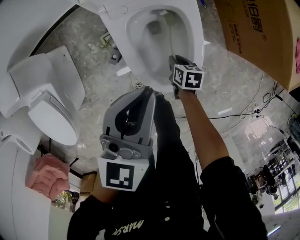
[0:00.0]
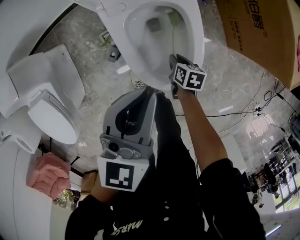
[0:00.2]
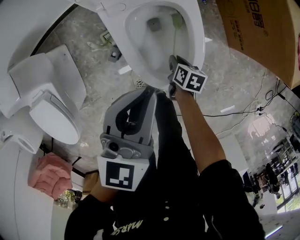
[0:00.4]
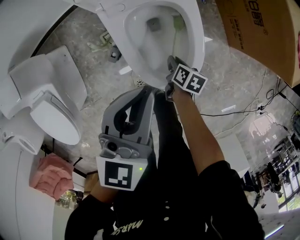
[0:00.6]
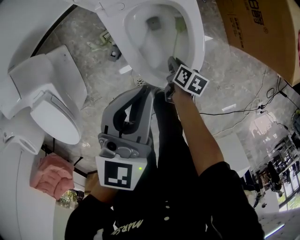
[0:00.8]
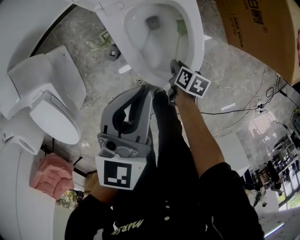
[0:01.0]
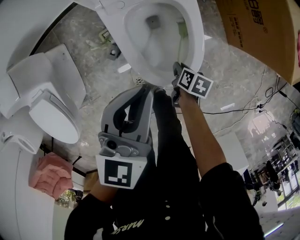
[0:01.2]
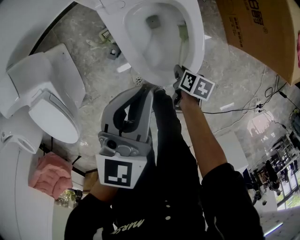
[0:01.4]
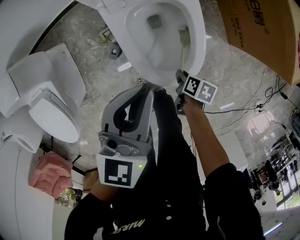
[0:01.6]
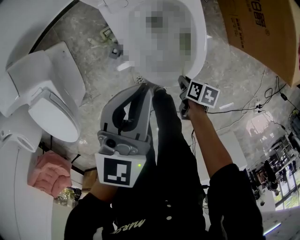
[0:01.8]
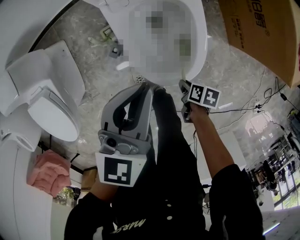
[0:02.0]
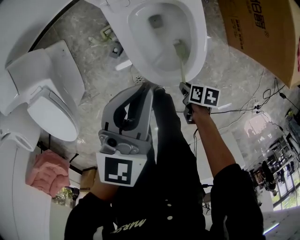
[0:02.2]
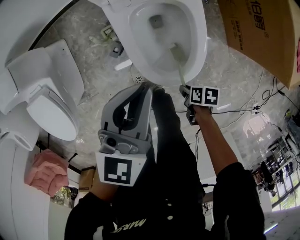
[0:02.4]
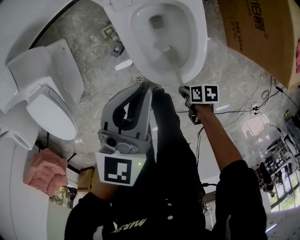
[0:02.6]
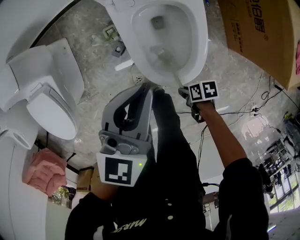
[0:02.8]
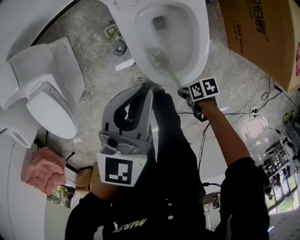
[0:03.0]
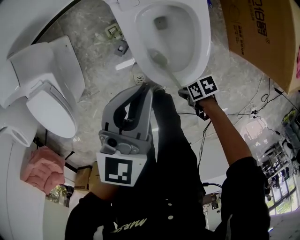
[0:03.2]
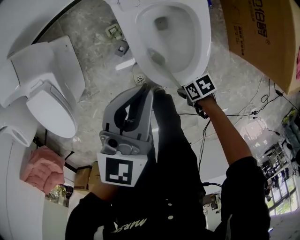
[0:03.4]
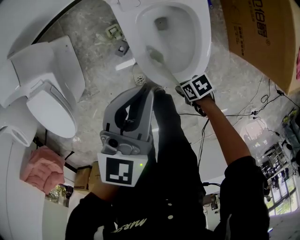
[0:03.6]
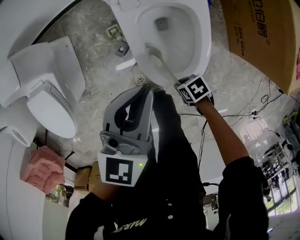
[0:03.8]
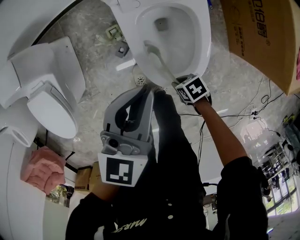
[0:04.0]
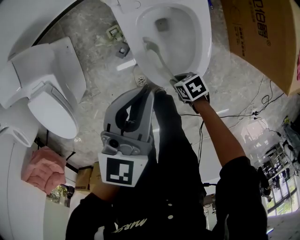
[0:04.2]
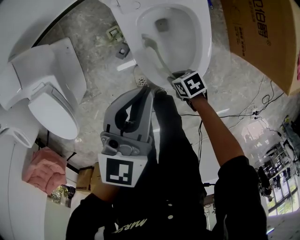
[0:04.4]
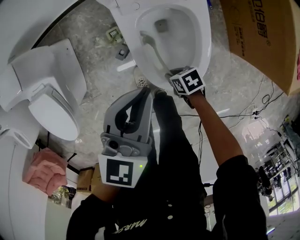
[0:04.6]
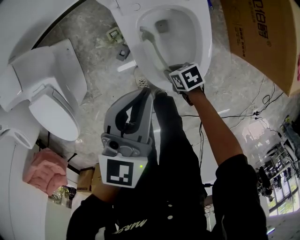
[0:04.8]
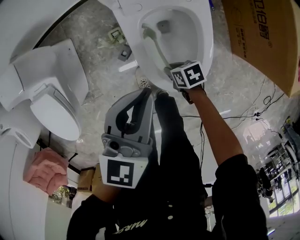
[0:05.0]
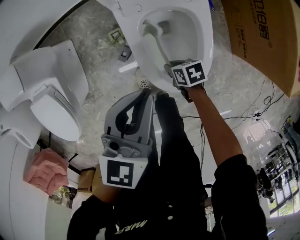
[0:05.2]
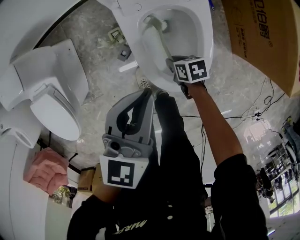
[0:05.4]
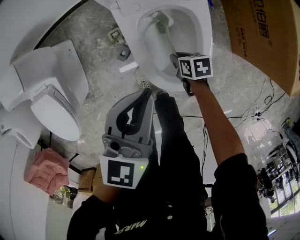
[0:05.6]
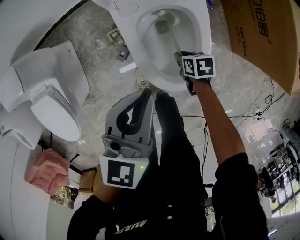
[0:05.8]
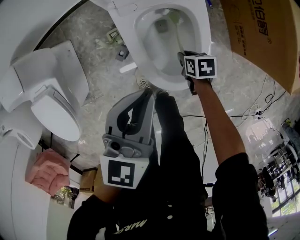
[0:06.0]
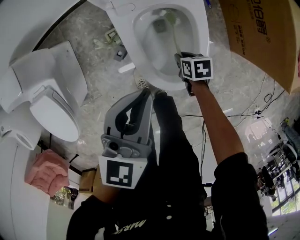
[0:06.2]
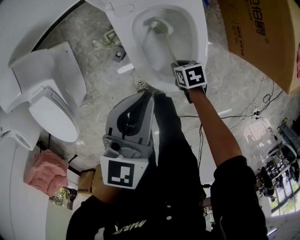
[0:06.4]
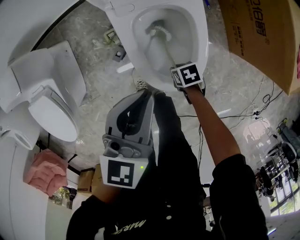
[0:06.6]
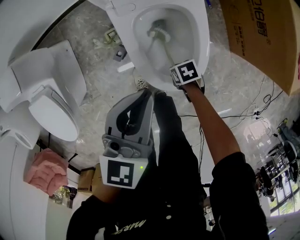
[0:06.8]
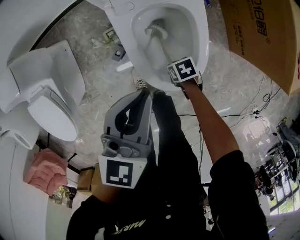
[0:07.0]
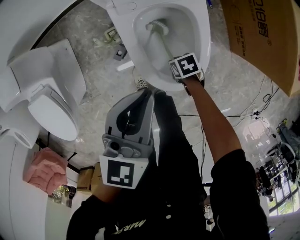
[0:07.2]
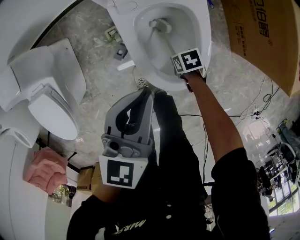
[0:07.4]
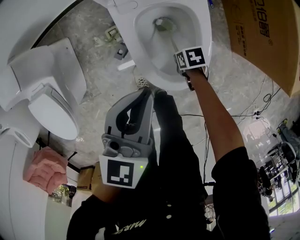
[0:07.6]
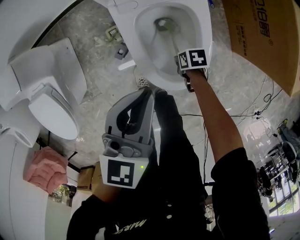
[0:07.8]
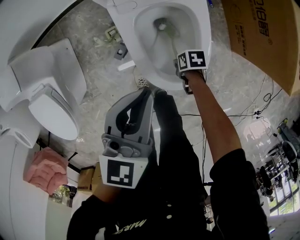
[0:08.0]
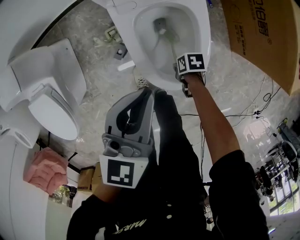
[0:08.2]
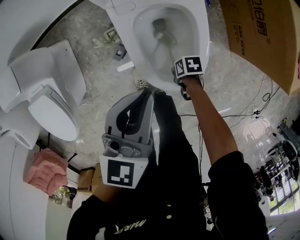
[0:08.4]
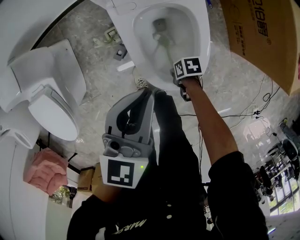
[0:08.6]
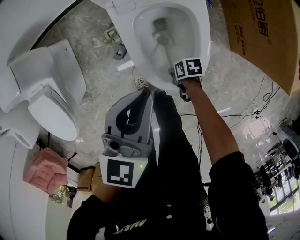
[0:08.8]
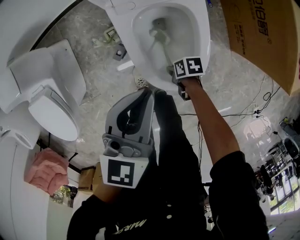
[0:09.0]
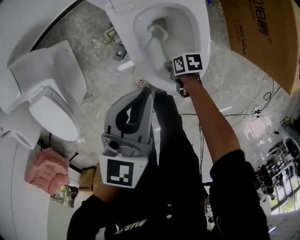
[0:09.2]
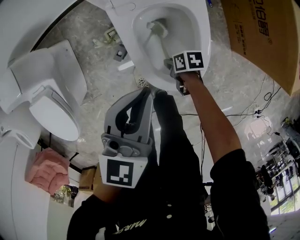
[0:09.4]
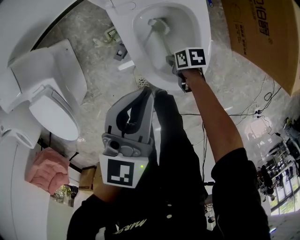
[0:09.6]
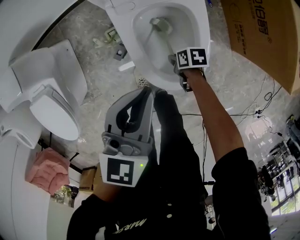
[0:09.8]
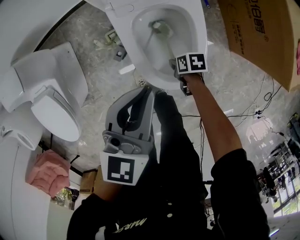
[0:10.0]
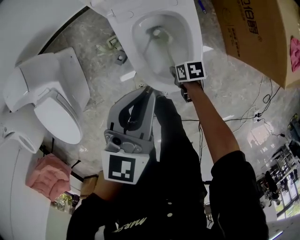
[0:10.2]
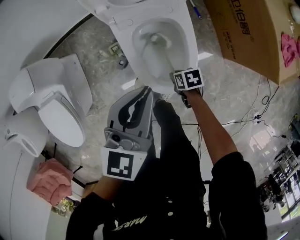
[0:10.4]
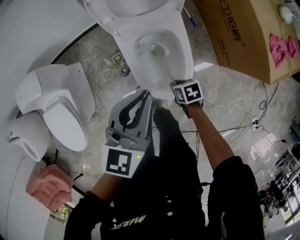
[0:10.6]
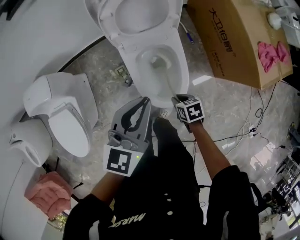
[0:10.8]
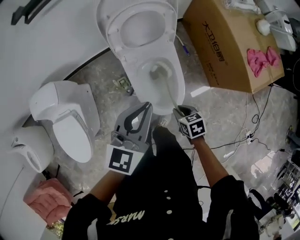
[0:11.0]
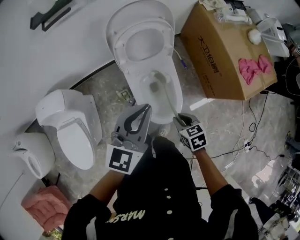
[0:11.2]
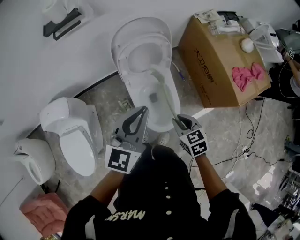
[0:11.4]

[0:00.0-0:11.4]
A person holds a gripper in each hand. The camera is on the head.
0:00.0 to 0:01.4: The right gripper goes about 5 cm backward, and turns by approximately 20 degrees.
0:01.4 to 0:02.8: The right gripper shifts by some 10 cm, and turns by some 40 degrees.
0:02.8 to 0:04.2: The right gripper ends up roughly 10 cm from where it was, and swivels about 30 degrees.
0:04.2 to 0:05.6: The right gripper moves approximately 10 cm, and turns by roughly 20 degrees.
0:05.6 to 0:07.2: The right gripper changes place by roughly 5 cm.
0:07.2 to 0:08.6: The right gripper shifts by approximately 5 cm, and turns by approximately 20 degrees.
0:08.6 to 0:10.0: The right gripper changes place by some 5 cm.
0:10.0 to 0:11.4: Both grippers move upward, about 40 cm. The right gripper changes its angle by about 50 degrees. Meanwhile the left gripper changes its angle by approximately 20 degrees.

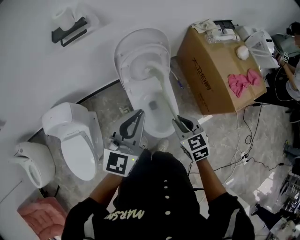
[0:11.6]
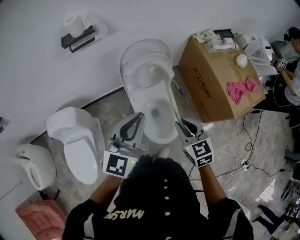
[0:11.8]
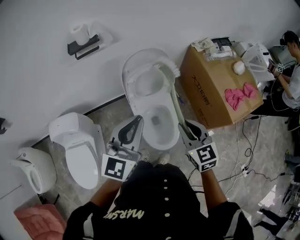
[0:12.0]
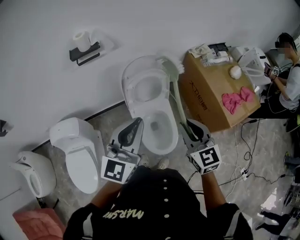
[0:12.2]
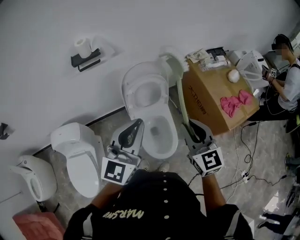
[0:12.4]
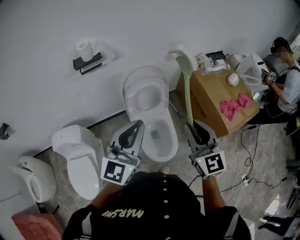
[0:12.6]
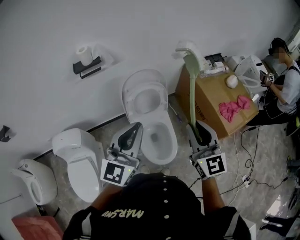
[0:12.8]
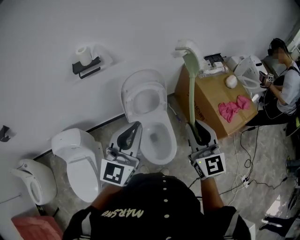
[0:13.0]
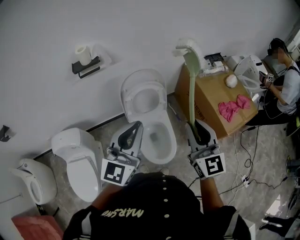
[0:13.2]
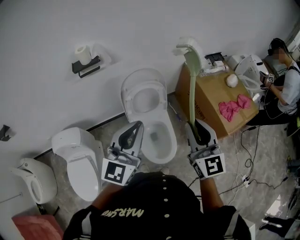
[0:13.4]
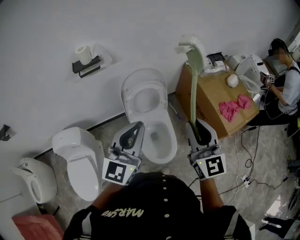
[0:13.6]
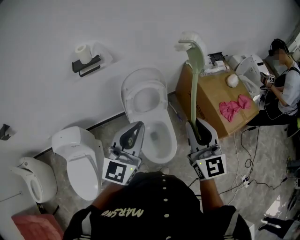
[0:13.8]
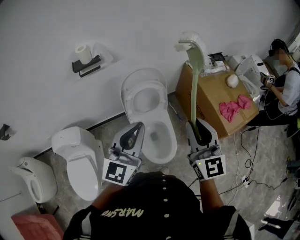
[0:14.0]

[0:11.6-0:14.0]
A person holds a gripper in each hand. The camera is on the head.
0:11.6 to 0:12.8: The left gripper heads upward, covering approximately 15 cm; the right gripper goes about 25 cm upward, and angles its fingers upward, by some 40 degrees.
0:12.8 to 0:14.0: The grippers stay close to where they were, moving slightly.

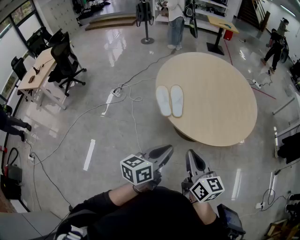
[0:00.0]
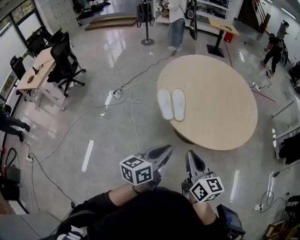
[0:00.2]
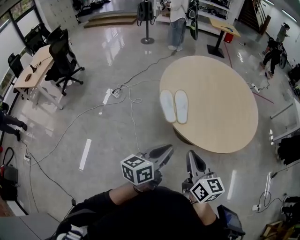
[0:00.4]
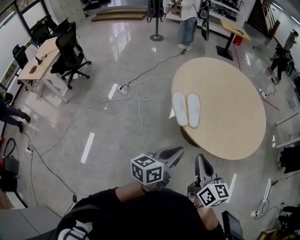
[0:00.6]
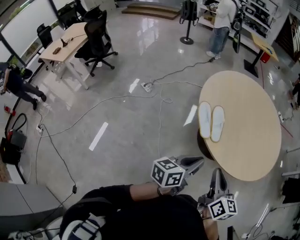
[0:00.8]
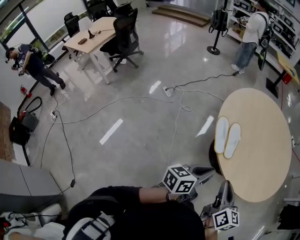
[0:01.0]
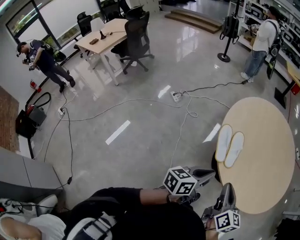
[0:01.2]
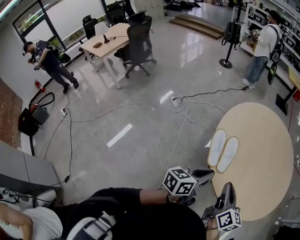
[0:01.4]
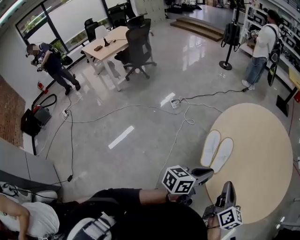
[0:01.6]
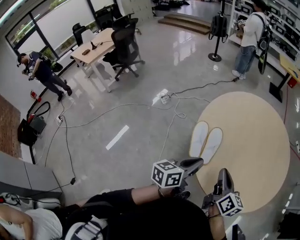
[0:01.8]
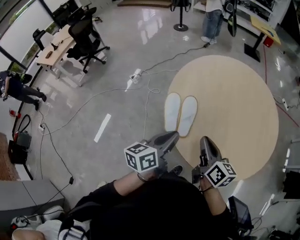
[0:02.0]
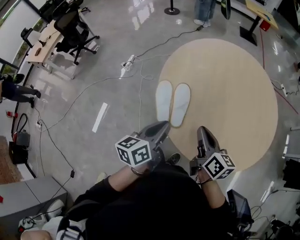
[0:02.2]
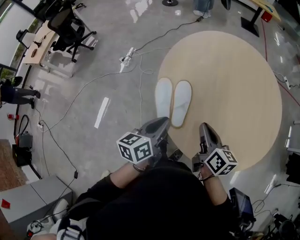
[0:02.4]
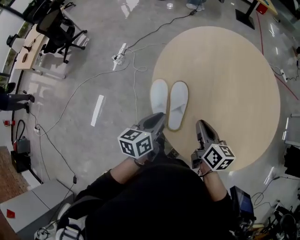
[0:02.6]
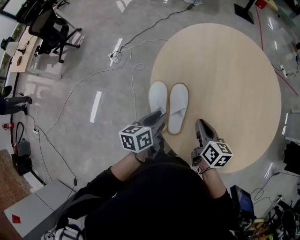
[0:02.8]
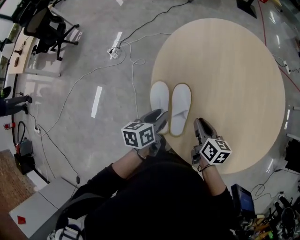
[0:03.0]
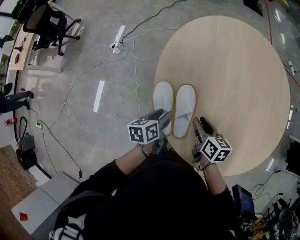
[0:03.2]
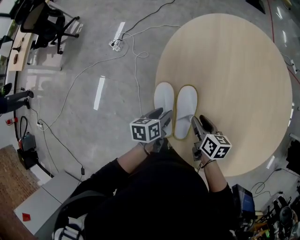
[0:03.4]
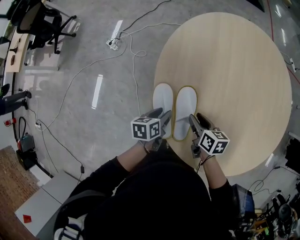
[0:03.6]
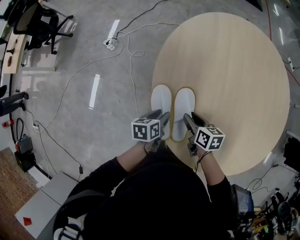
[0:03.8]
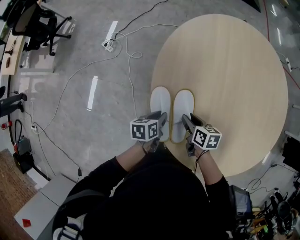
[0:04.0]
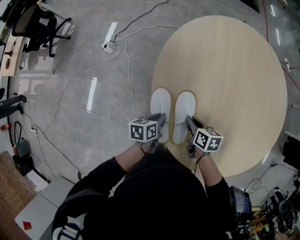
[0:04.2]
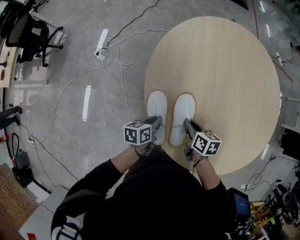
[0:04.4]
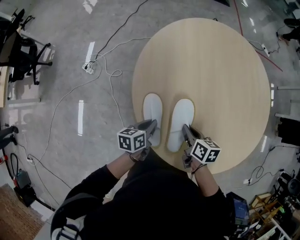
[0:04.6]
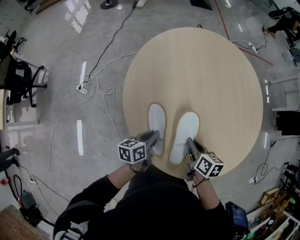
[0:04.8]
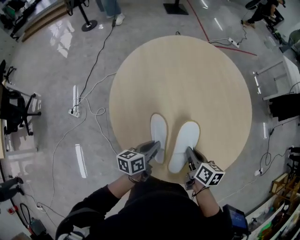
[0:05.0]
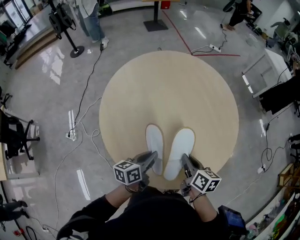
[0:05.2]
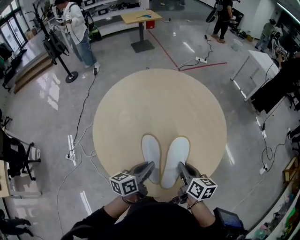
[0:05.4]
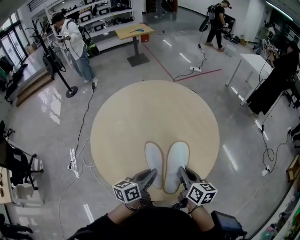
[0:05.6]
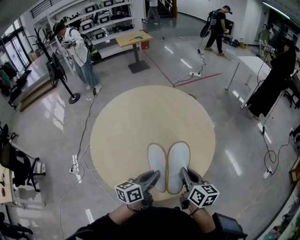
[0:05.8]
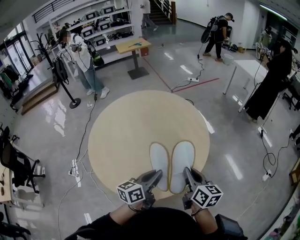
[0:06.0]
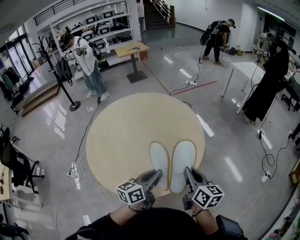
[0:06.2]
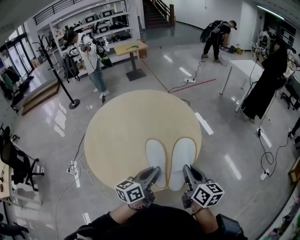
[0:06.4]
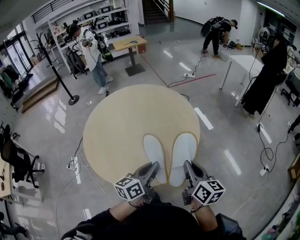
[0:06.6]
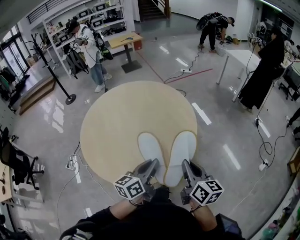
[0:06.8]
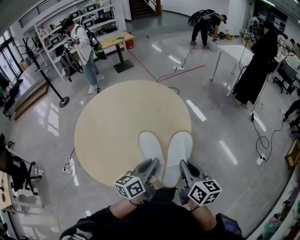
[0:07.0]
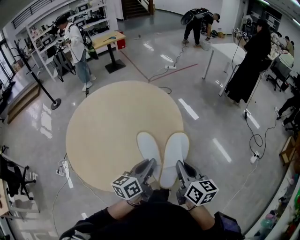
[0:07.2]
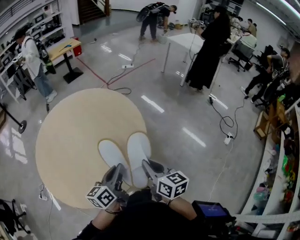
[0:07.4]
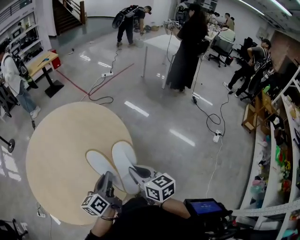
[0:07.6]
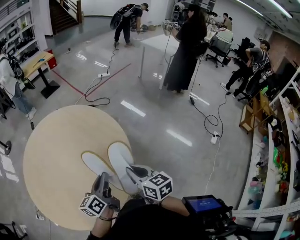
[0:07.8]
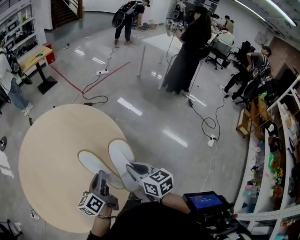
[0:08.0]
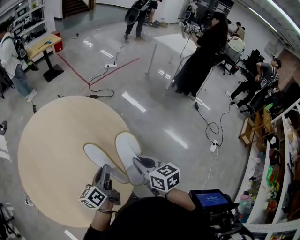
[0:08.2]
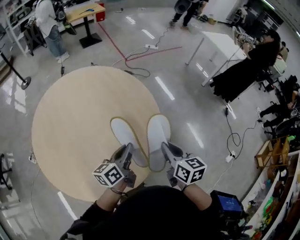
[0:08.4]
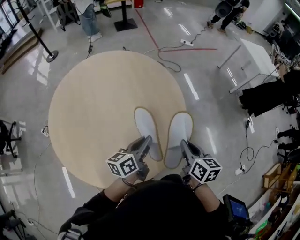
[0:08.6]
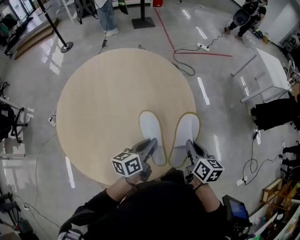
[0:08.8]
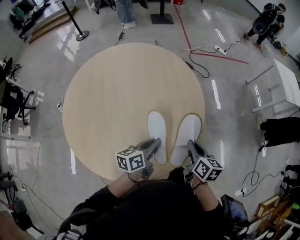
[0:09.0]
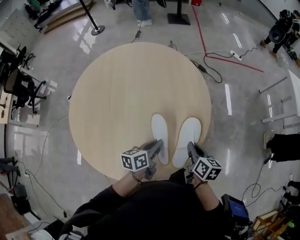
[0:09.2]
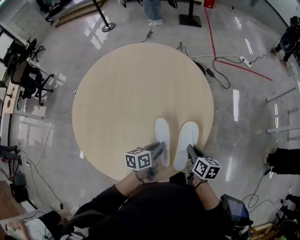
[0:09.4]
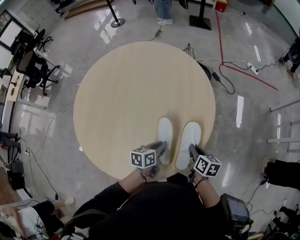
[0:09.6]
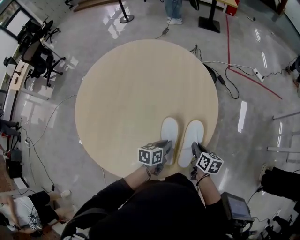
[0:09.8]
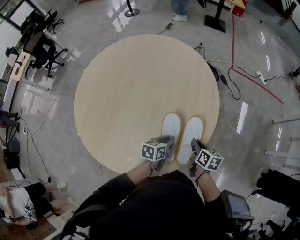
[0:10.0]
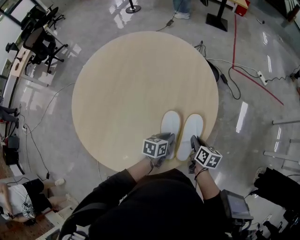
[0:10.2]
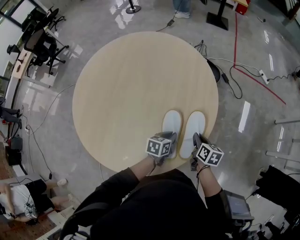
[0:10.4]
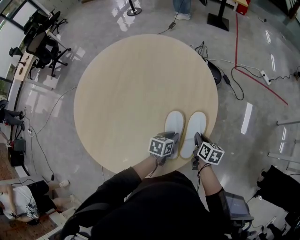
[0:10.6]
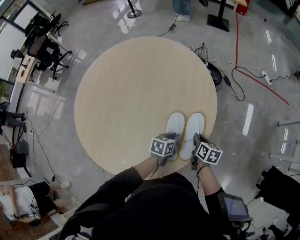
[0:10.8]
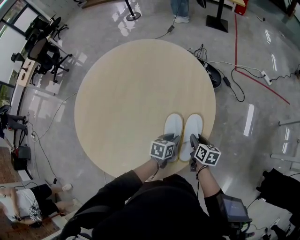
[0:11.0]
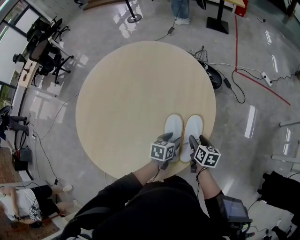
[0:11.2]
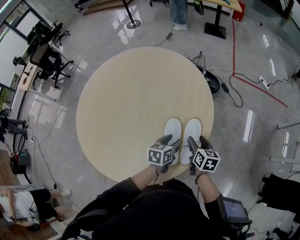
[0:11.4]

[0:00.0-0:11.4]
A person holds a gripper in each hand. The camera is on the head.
0:00.0 to 0:01.4: The two grippers go approximately 20 cm forward and to the left.
0:01.4 to 0:02.8: The right gripper travels forward, downward and to the right by some 30 cm. The left gripper moves forward and downward, roughly 30 cm, turns by approximately 20 degrees, and opens.
0:02.8 to 0:04.2: The right gripper travels downward, to the left and forward by some 15 cm, and opens, then closes once more; the left gripper moves downward, approximately 15 cm.
0:04.2 to 0:05.6: The right gripper moves approximately 50 cm, and swivels roughly 50 degrees. Meanwhile the left gripper moves about 40 cm, and tips its fingers upward by some 30 degrees.
0:05.6 to 0:07.2: The two grippers go approximately 25 cm to the right.
0:07.2 to 0:08.6: The grippers both shift forward by some 30 cm. The right gripper swivels approximately 20 degrees.
0:08.6 to 0:10.0: The right gripper changes place by approximately 30 cm, and turns by some 30 degrees, while the left gripper shifts some 20 cm downward, and swivels roughly 30 degrees.
0:10.0 to 0:11.4: The grippers both shift forward by about 5 cm. The right gripper opens up. Meanwhile the left gripper opens up.
